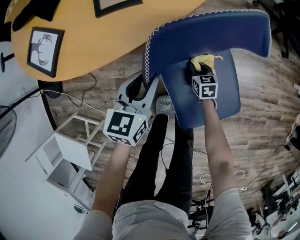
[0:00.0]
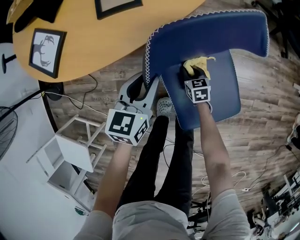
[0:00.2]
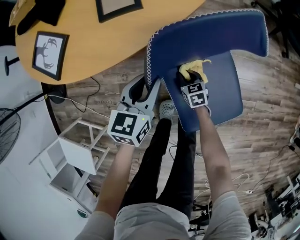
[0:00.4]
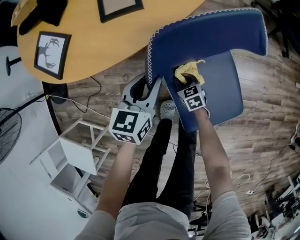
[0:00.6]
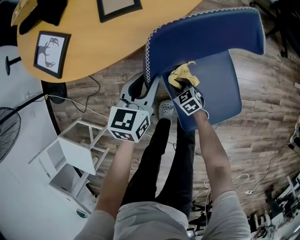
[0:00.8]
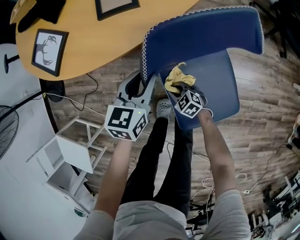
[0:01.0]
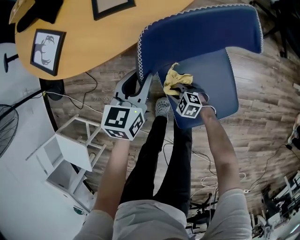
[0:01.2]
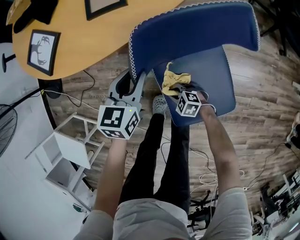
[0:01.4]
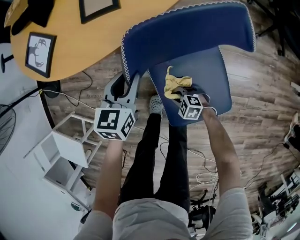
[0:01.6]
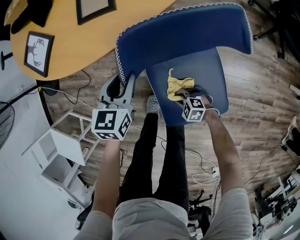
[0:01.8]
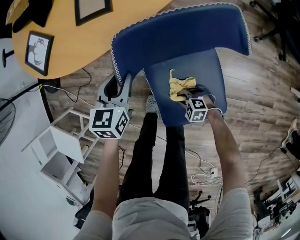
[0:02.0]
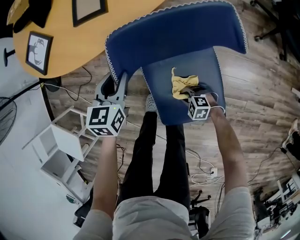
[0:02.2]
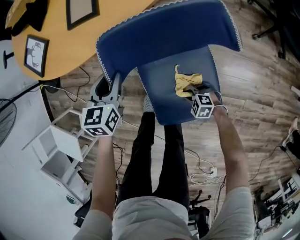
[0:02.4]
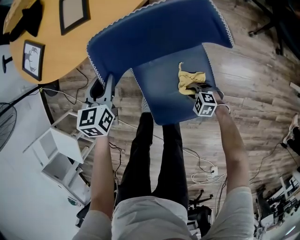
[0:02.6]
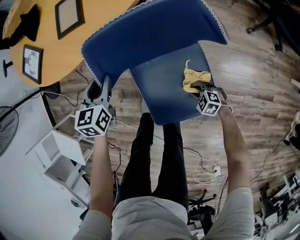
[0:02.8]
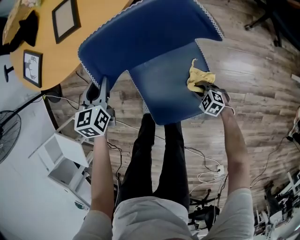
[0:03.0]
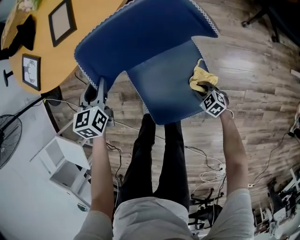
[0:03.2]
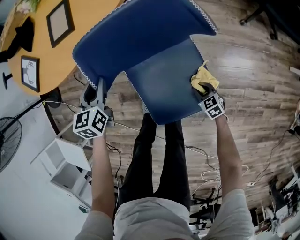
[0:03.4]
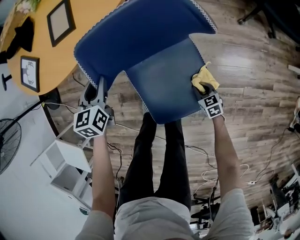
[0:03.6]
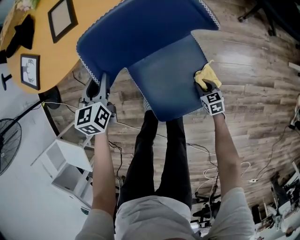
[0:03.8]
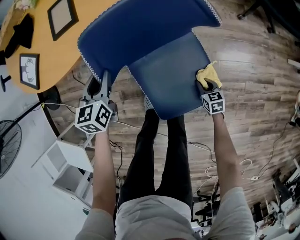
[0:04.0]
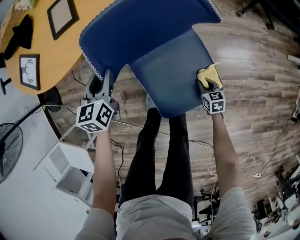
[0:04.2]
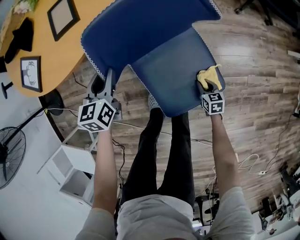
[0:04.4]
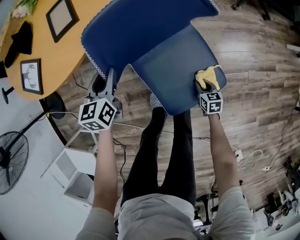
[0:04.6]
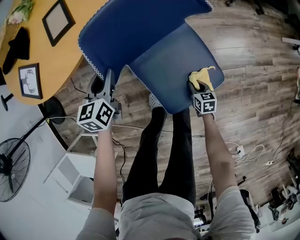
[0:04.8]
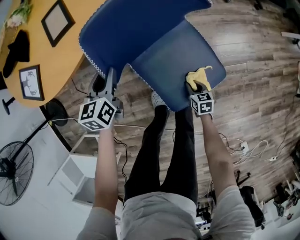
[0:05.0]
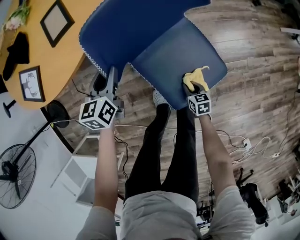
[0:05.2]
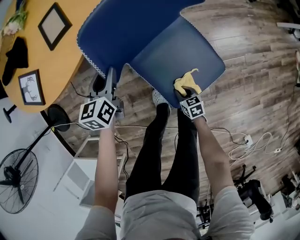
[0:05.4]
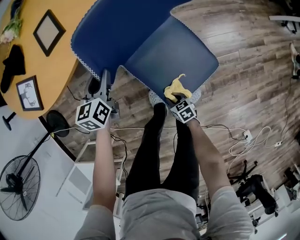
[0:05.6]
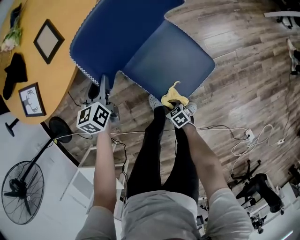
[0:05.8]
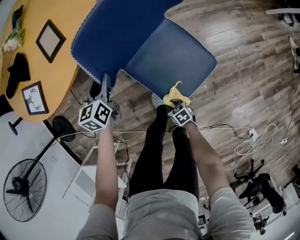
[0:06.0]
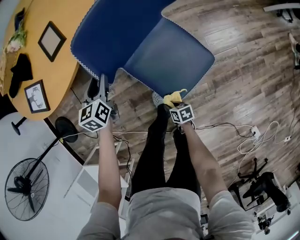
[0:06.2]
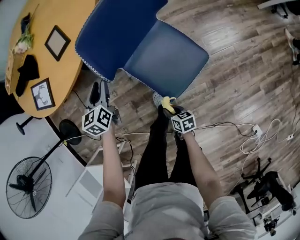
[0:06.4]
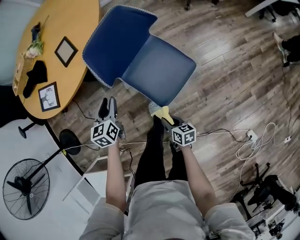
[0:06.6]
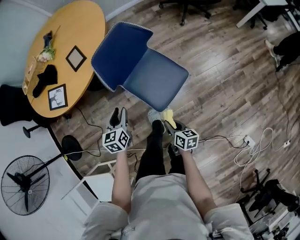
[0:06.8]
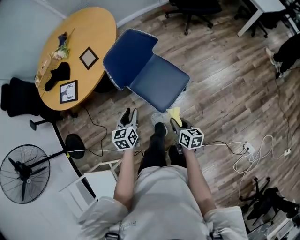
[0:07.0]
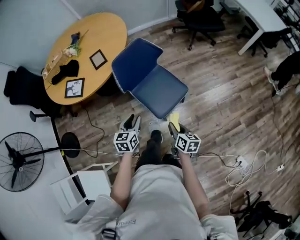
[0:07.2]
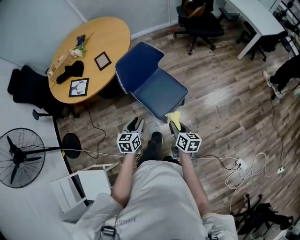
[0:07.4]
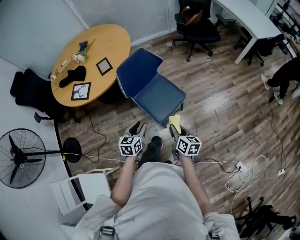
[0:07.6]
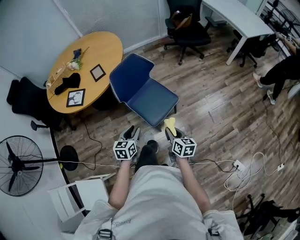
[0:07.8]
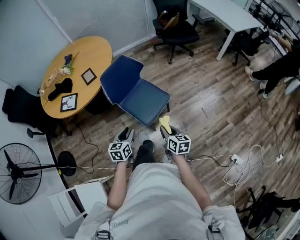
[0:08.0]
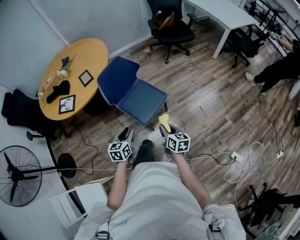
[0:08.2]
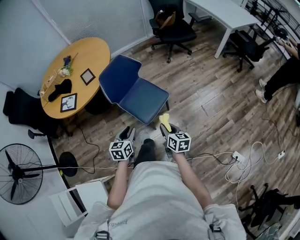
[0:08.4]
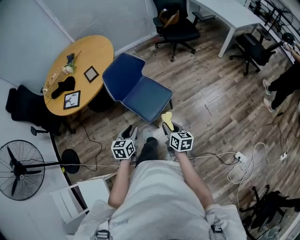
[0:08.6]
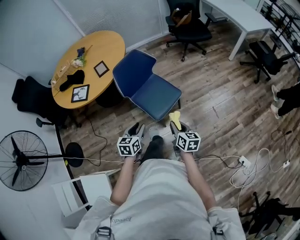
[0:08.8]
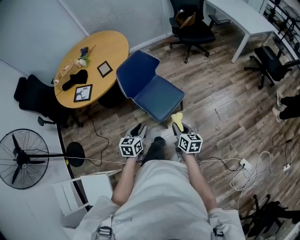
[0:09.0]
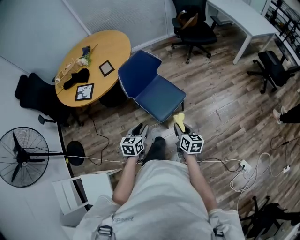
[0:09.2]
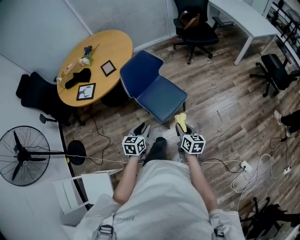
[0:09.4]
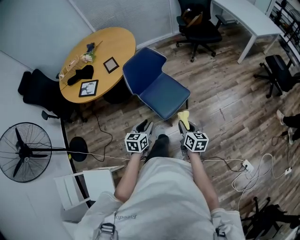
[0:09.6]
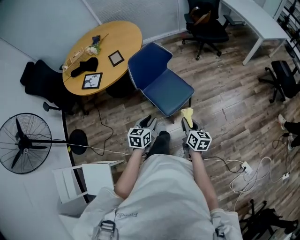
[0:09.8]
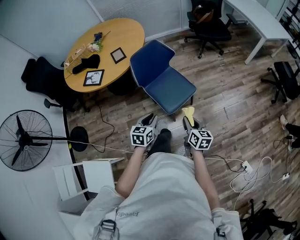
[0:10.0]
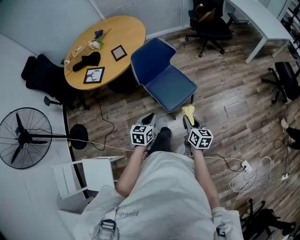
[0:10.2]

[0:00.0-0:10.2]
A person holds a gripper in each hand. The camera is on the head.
0:00.0 to 0:01.4: The right gripper moves roughly 20 cm, and swivels some 70 degrees.
0:01.4 to 0:03.0: The right gripper travels to the right and backward by roughly 25 cm.
0:03.0 to 0:04.4: The right gripper rolls clockwise, seen from behind, by roughly 60 degrees.
0:04.4 to 0:05.8: The right gripper goes roughly 25 cm to the left and backward.
0:05.8 to 0:07.2: The left gripper moves approximately 35 cm, while the right gripper goes approximately 40 cm upward, and swivels some 50 degrees.
0:07.2 to 0:08.8: The right gripper is displaced upward and backward by approximately 10 cm; the left gripper heads backward and to the right, covering roughly 10 cm.
0:08.8 to 0:10.2: The left gripper closes its fingers.

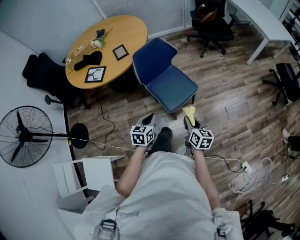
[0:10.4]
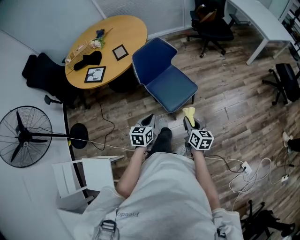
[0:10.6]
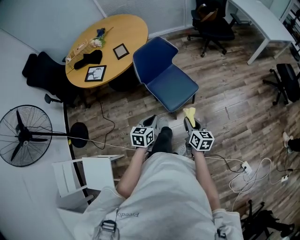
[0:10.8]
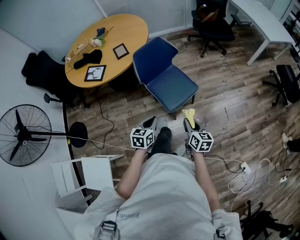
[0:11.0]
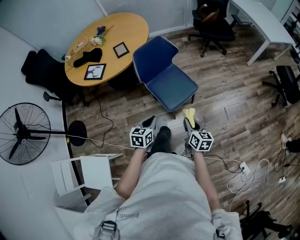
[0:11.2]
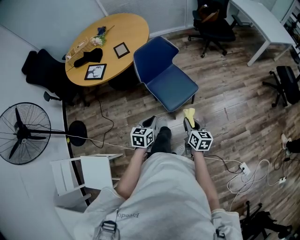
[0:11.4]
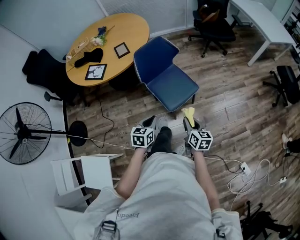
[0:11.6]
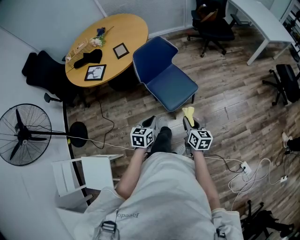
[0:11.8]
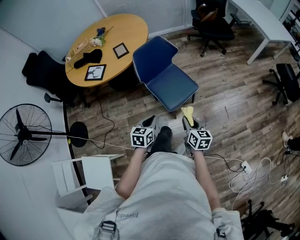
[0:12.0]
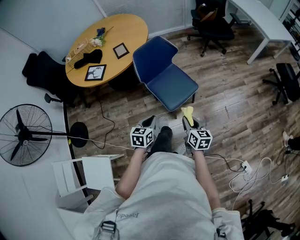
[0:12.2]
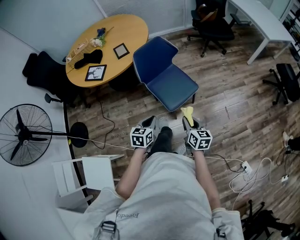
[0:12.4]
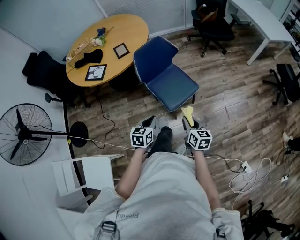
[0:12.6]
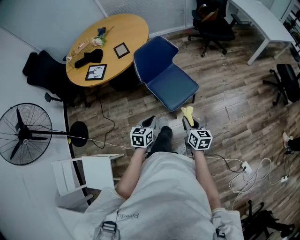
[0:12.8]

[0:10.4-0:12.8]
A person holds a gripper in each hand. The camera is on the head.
0:10.4 to 0:11.6: The grippers move only a little.
0:11.6 to 0:12.8: The two grippers keep their place.

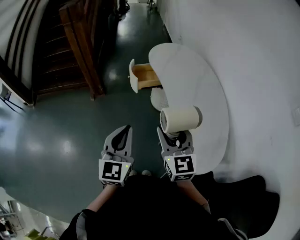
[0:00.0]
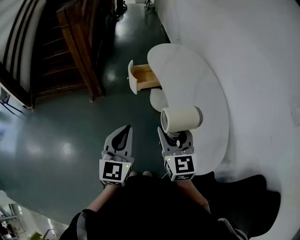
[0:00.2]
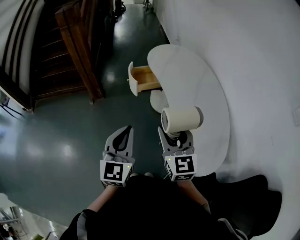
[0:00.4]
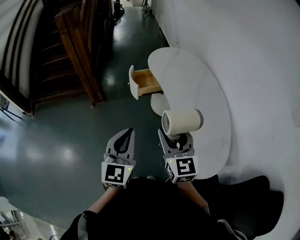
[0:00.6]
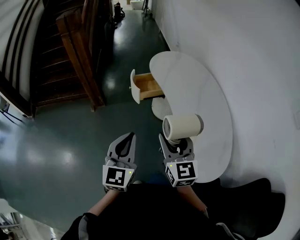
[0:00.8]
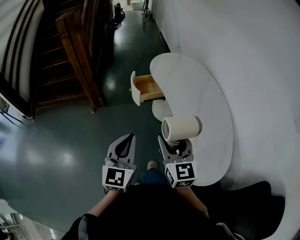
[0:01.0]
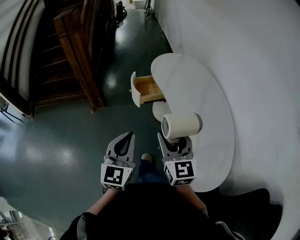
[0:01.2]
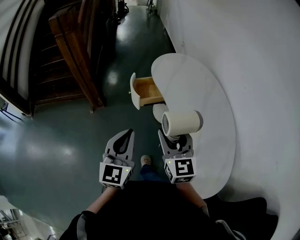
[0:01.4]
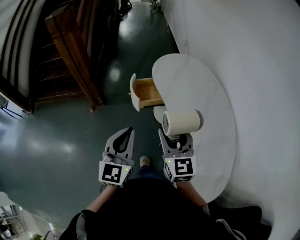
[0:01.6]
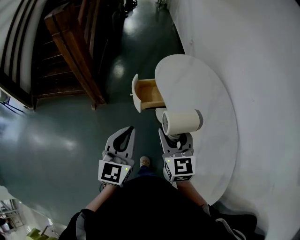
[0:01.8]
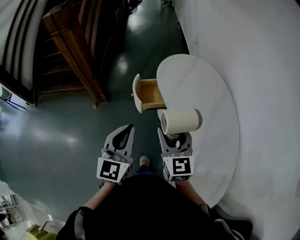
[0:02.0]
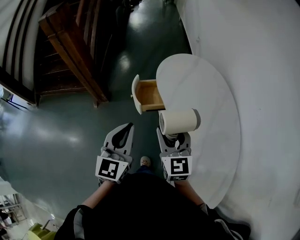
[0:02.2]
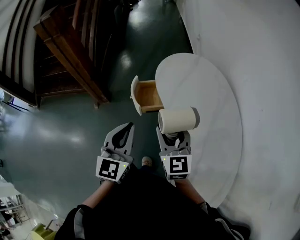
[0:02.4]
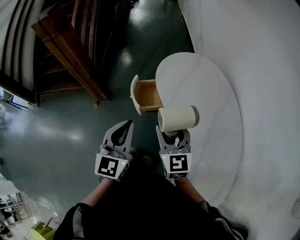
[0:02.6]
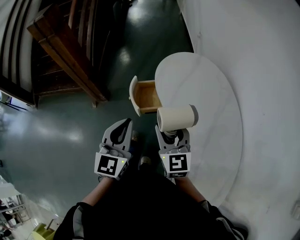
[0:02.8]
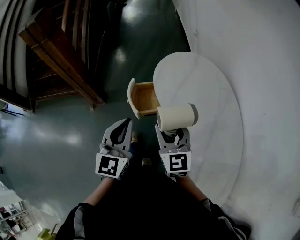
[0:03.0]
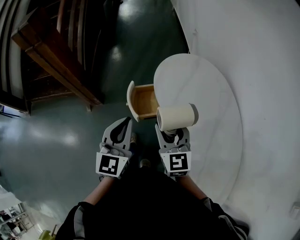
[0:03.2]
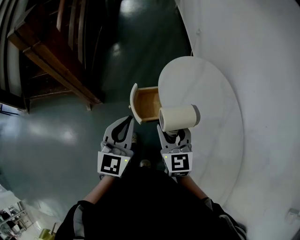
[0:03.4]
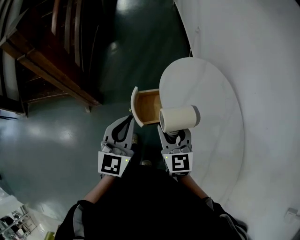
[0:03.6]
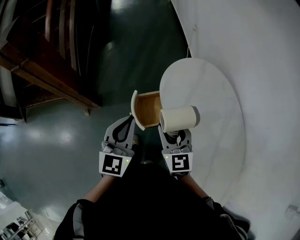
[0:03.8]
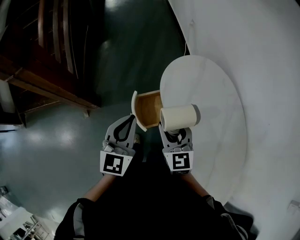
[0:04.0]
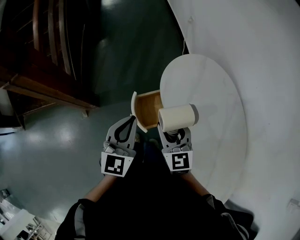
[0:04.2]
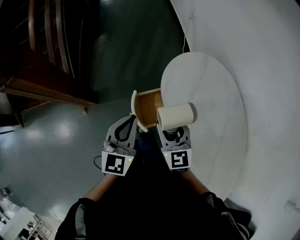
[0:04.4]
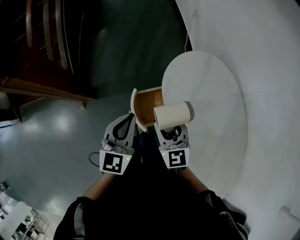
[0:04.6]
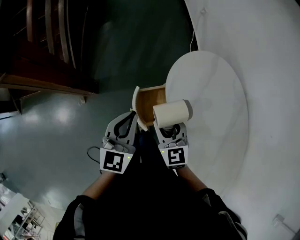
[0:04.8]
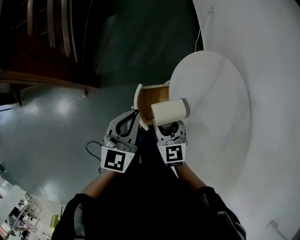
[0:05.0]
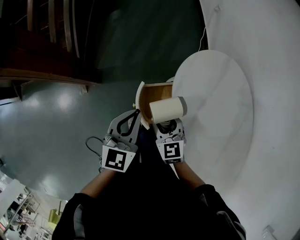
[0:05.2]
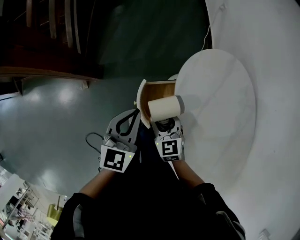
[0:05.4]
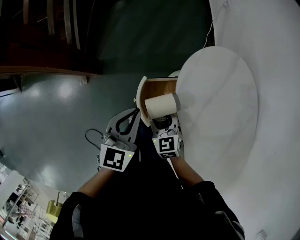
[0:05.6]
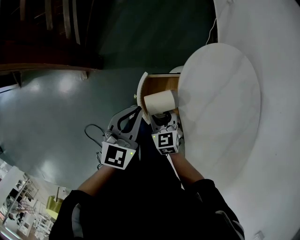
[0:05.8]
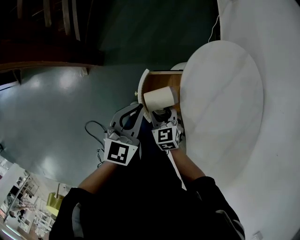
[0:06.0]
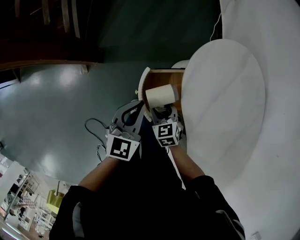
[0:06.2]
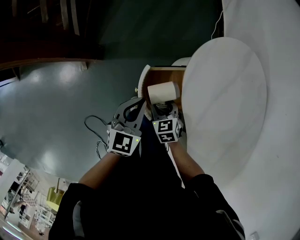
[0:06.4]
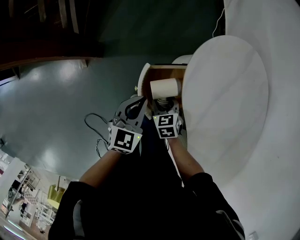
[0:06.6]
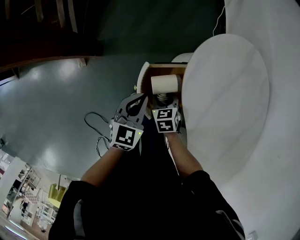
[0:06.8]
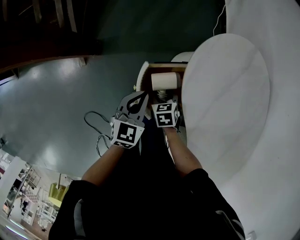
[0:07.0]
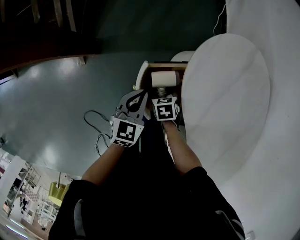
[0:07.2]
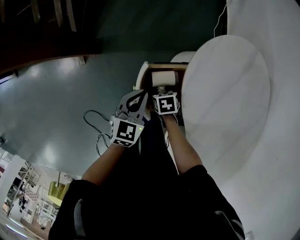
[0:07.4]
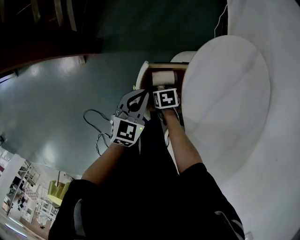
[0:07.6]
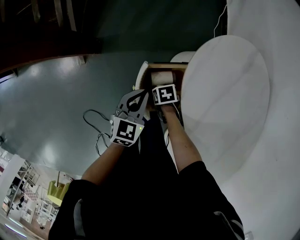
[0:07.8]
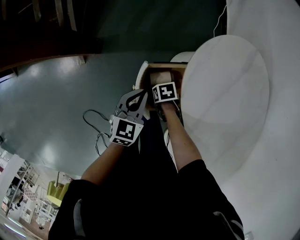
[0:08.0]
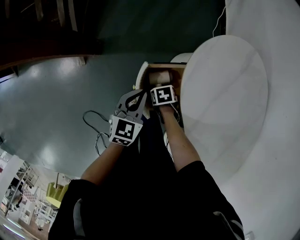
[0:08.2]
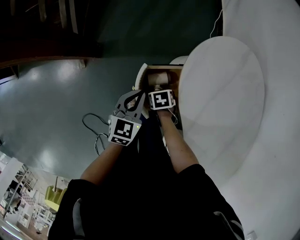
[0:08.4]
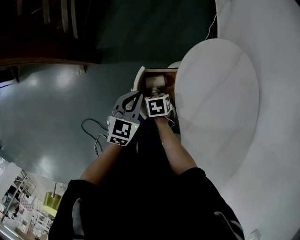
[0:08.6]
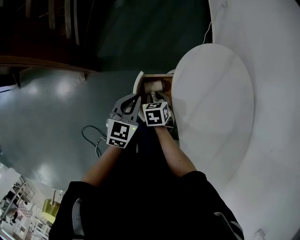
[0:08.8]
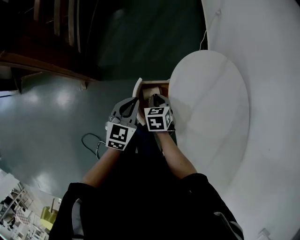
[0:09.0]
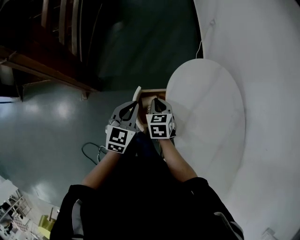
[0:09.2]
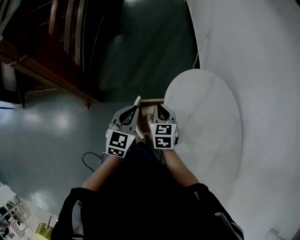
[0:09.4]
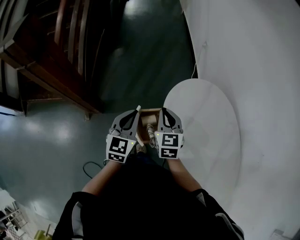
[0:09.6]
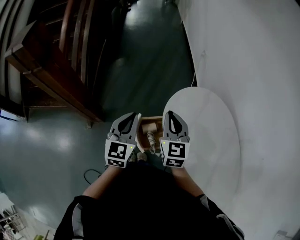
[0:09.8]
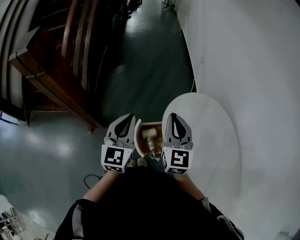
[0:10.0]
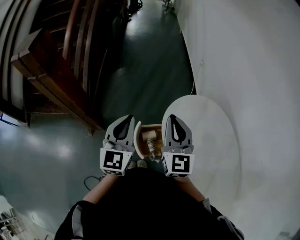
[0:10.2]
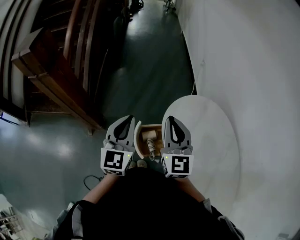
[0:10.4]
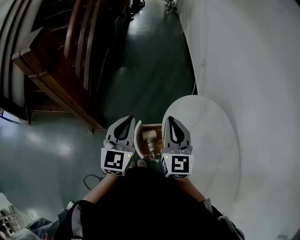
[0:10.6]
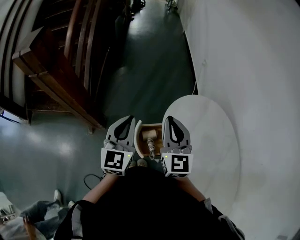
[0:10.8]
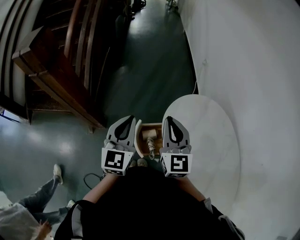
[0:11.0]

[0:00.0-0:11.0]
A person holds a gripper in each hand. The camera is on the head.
0:00.0 to 0:01.6: The two grippers go some 20 cm forward.
0:01.6 to 0:03.2: The two grippers go some 25 cm forward.
0:03.2 to 0:04.8: The right gripper goes some 20 cm forward, downward and to the left; the left gripper is displaced forward and downward by approximately 20 cm.
0:04.8 to 0:06.2: The right gripper travels downward by about 20 cm, and rotates roughly 20 degrees; the left gripper is displaced downward by approximately 10 cm.
0:06.2 to 0:07.8: The right gripper heads downward, covering some 10 cm, and swivels roughly 50 degrees. Meanwhile the left gripper moves downward, about 10 cm.
0:07.8 to 0:09.4: The right gripper heads upward, covering some 30 cm, tips its fingers upward by some 30 degrees, and closes up; the left gripper travels upward by roughly 15 cm.
0:09.4 to 0:11.0: Both grippers move upward, about 20 cm. The right gripper tilts its fingers approximately 30 degrees upward.
